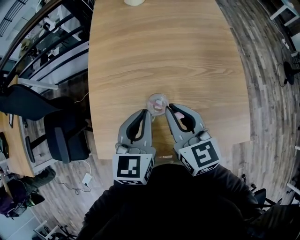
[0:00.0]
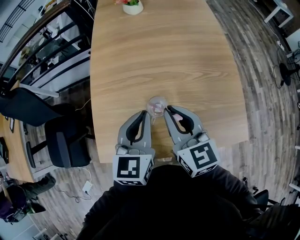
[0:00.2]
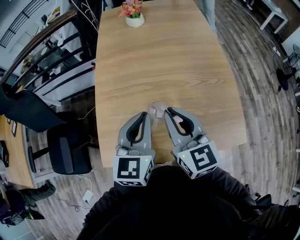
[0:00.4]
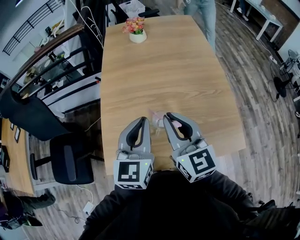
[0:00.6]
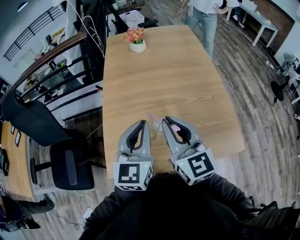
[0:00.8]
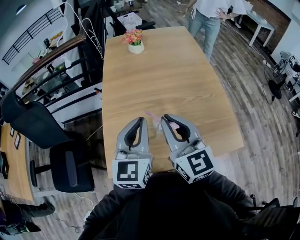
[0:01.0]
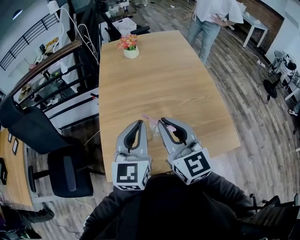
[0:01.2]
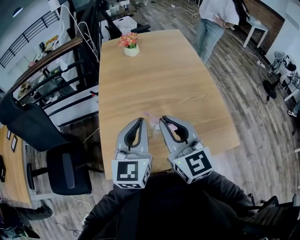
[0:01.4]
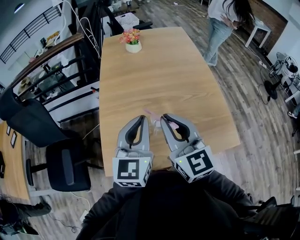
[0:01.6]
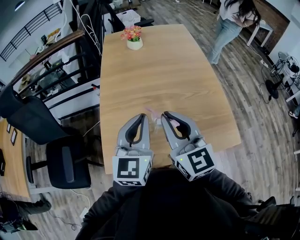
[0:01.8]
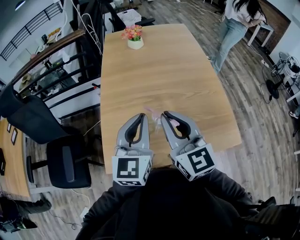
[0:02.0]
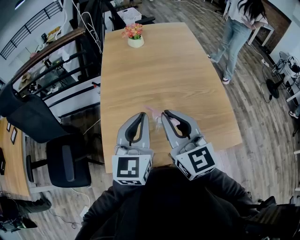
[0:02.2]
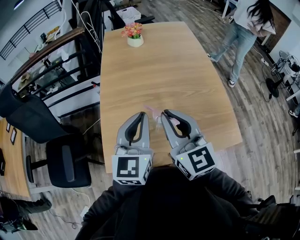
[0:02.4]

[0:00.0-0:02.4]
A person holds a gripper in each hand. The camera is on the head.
0.0 to 1.2 s: The right gripper moves upward and backward, some 15 cm, and turns by approximately 20 degrees, while the left gripper is displaced upward by about 10 cm, and changes its angle by some 20 degrees.
1.2 to 2.4 s: Neither gripper changes place.

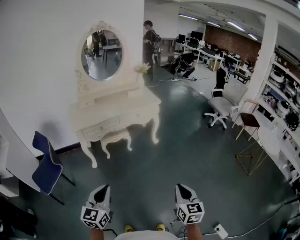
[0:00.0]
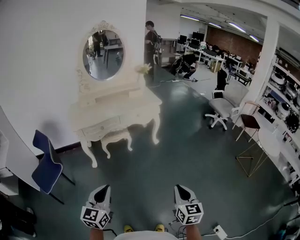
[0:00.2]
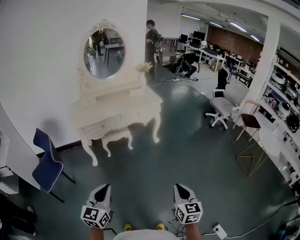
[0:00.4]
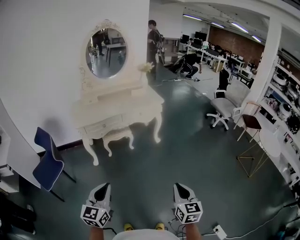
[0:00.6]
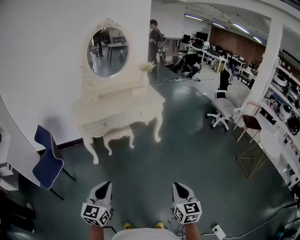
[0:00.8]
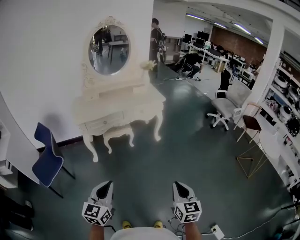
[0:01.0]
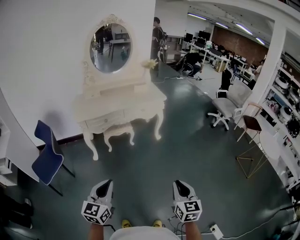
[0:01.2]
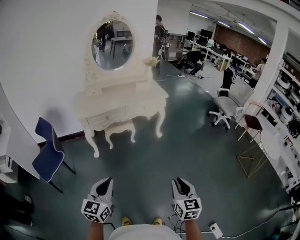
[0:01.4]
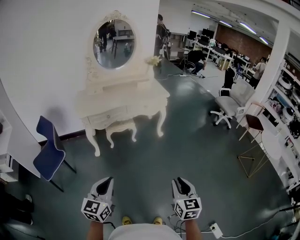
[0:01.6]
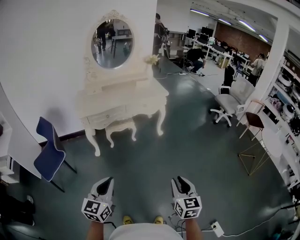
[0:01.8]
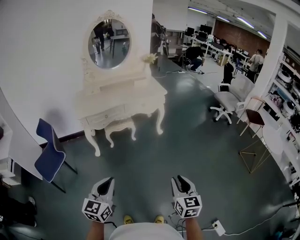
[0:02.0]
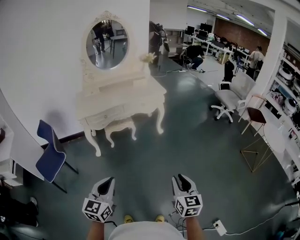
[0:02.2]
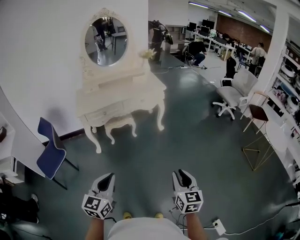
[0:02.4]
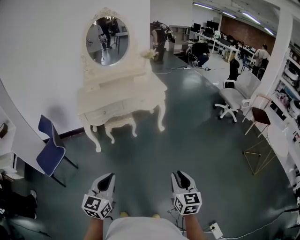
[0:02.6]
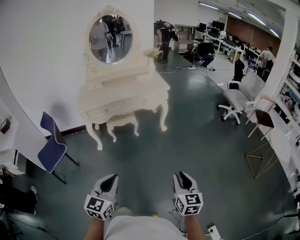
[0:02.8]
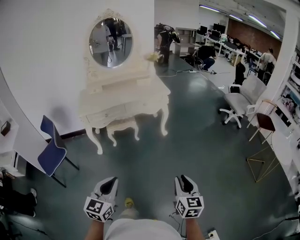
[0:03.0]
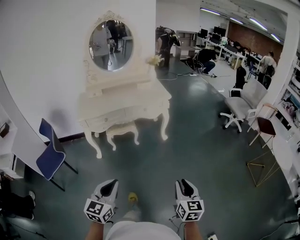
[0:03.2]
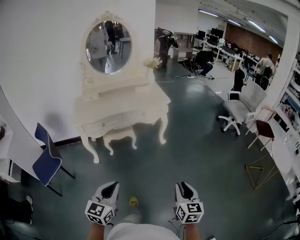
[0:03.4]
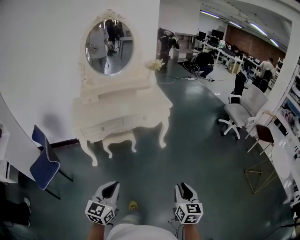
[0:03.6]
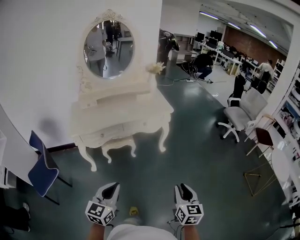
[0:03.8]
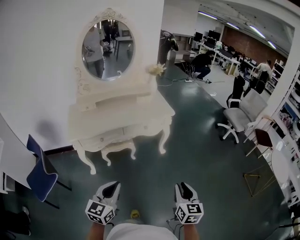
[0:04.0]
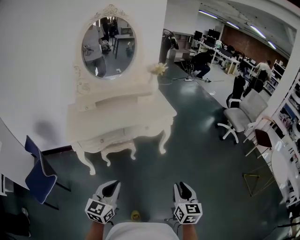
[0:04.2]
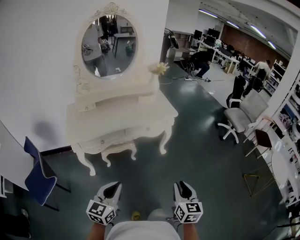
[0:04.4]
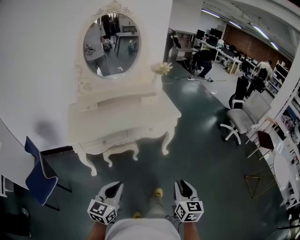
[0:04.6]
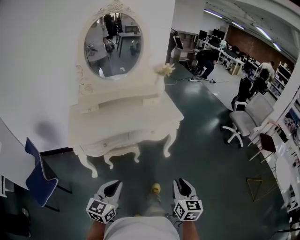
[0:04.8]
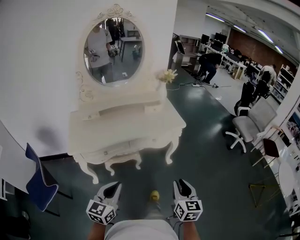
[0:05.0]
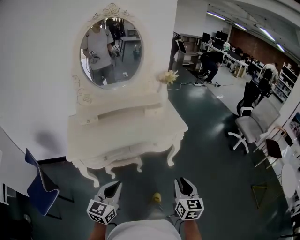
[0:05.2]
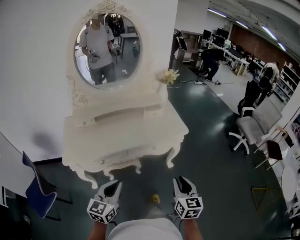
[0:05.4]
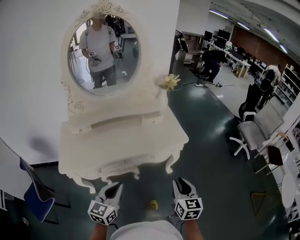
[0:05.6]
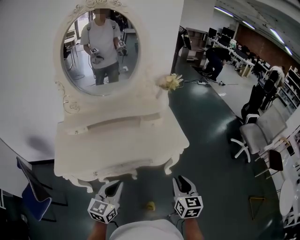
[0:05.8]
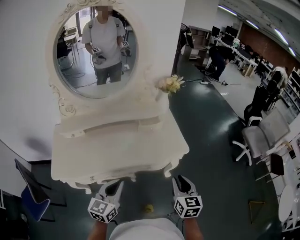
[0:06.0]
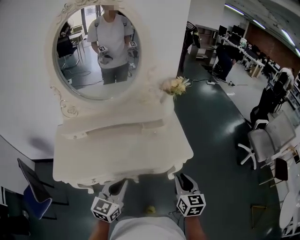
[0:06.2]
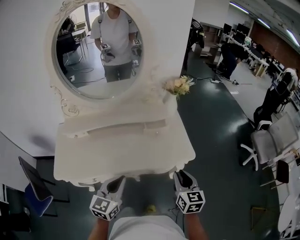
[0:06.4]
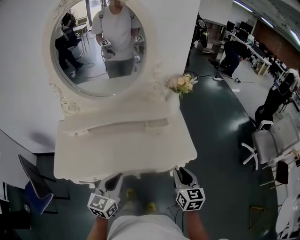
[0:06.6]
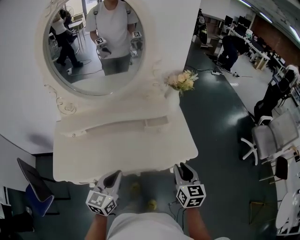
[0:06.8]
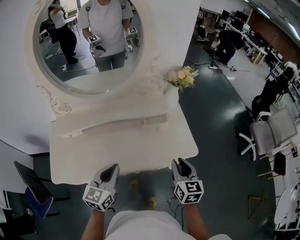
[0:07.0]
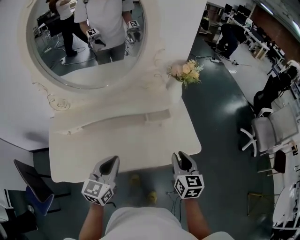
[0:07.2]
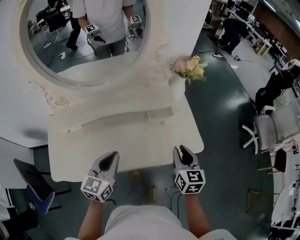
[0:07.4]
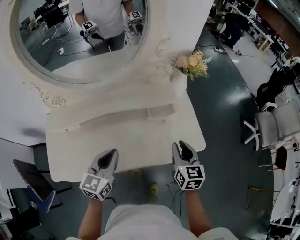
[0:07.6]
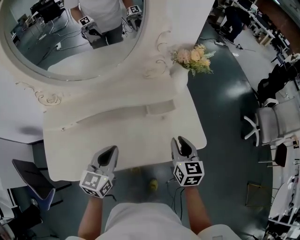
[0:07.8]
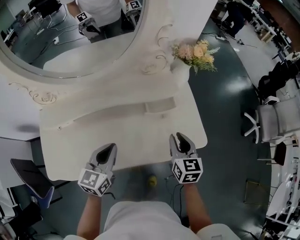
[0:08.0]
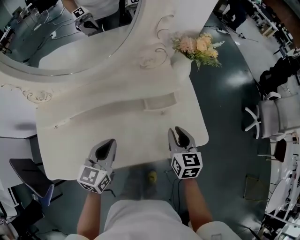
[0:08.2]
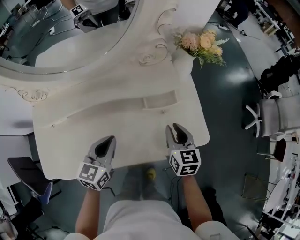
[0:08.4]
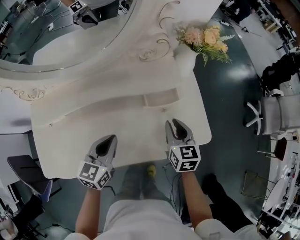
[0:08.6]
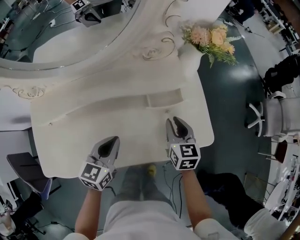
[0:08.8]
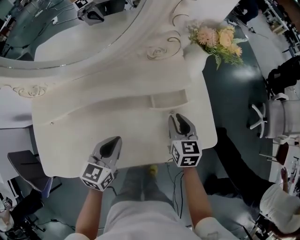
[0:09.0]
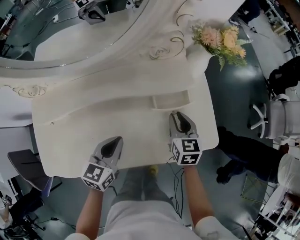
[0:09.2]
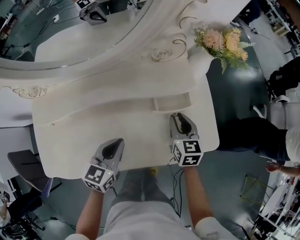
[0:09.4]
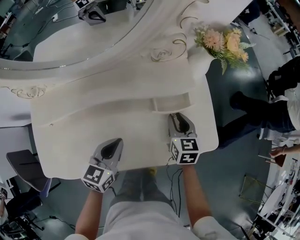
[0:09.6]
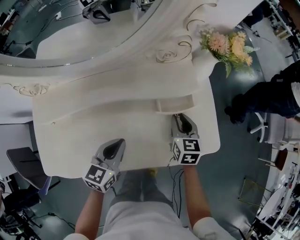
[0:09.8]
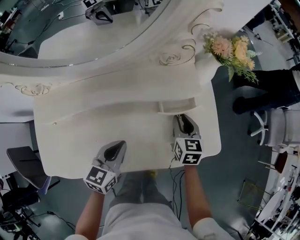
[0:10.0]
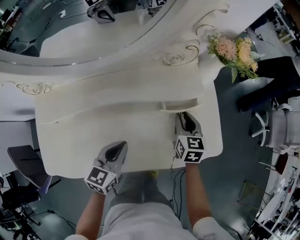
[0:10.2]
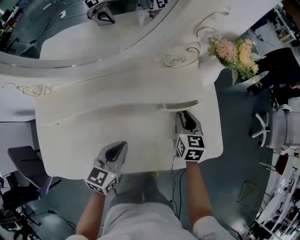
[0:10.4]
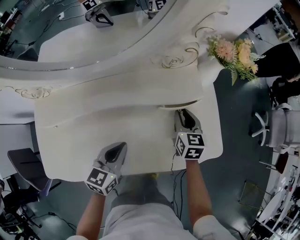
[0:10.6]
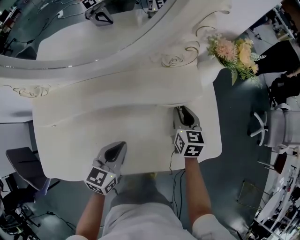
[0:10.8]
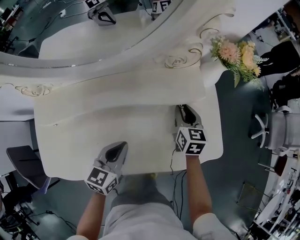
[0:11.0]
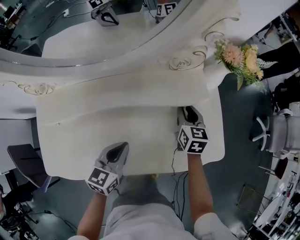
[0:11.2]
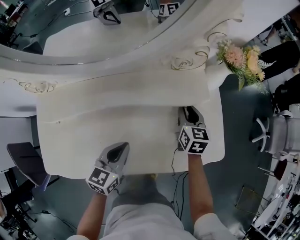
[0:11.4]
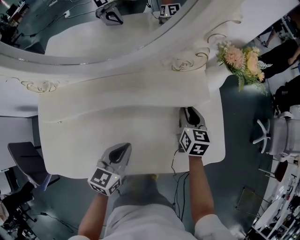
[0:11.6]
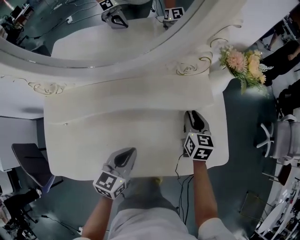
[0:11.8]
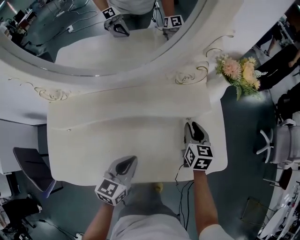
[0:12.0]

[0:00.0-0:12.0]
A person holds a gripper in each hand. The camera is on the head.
0.0 to 1.6 s: There are only small adjustments of the grippers.
1.6 to 3.0 s: The left gripper goes roughly 15 cm to the right. Meanwhile the right gripper moves to the right and forward, roughly 15 cm.
3.0 to 4.4 s: Both grippers move forward and to the left, approximately 35 cm.
4.4 to 6.0 s: Both grippers are carried forward, some 40 cm.
6.0 to 7.6 s: The two grippers go some 25 cm forward.
7.6 to 9.0 s: The left gripper shifts some 15 cm downward and forward; the right gripper moves forward and downward, some 15 cm.
9.0 to 10.4 s: The right gripper moves forward, approximately 5 cm.
10.4 to 12.0 s: The grippers move only a little.

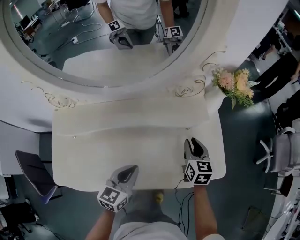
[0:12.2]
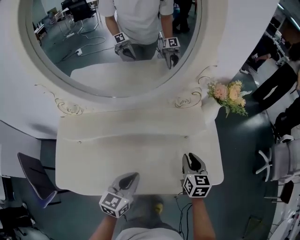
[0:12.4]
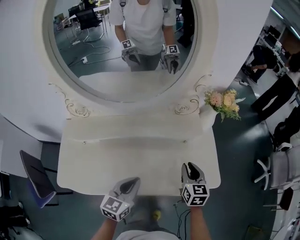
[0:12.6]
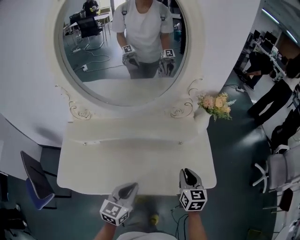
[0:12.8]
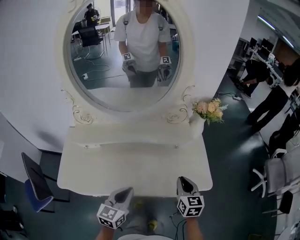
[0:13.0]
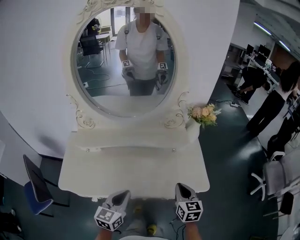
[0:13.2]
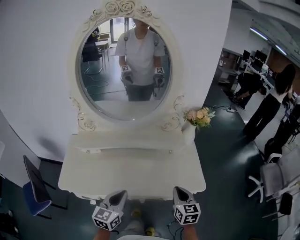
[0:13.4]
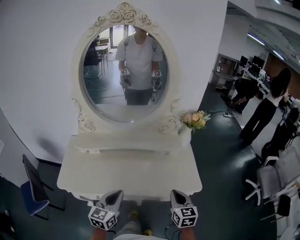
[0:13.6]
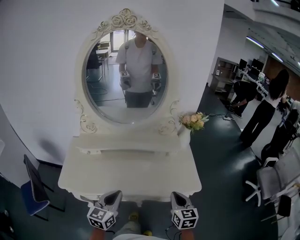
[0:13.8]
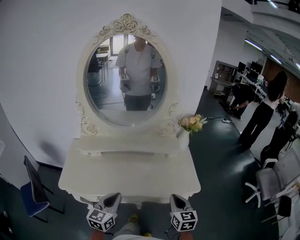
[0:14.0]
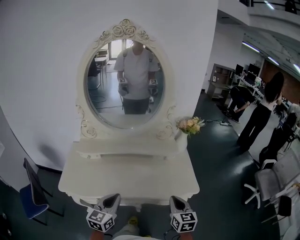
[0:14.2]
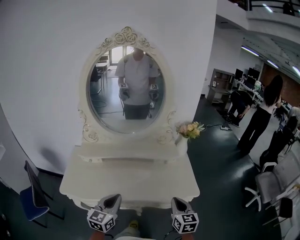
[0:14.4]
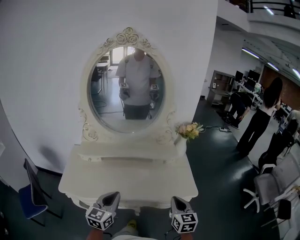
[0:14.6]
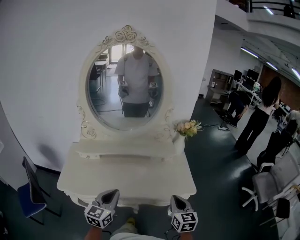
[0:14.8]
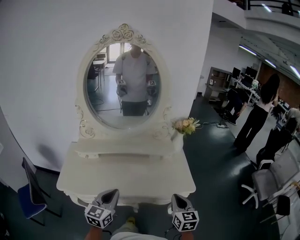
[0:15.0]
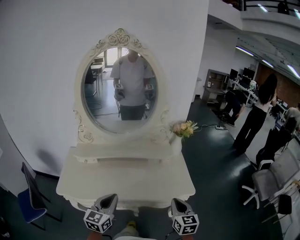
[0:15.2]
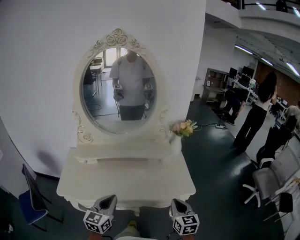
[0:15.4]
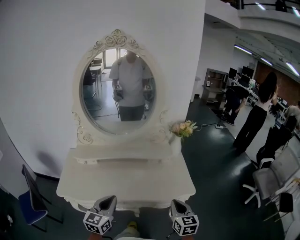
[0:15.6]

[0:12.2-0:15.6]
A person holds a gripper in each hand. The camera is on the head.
12.2 to 13.8 s: Both grippers move backward and upward, about 30 cm. The right gripper closes its fingers.
13.8 to 15.6 s: The right gripper travels backward by approximately 5 cm.

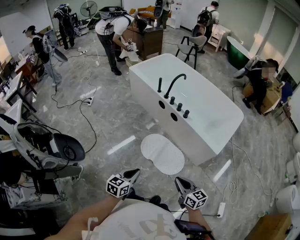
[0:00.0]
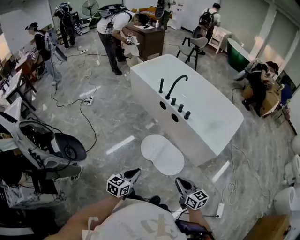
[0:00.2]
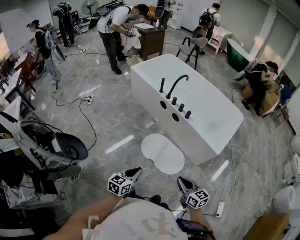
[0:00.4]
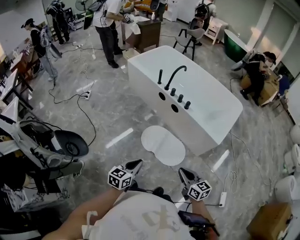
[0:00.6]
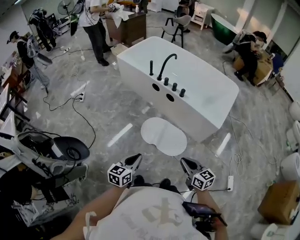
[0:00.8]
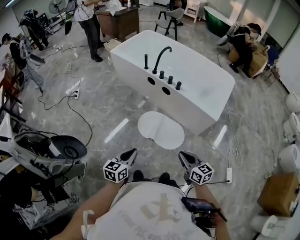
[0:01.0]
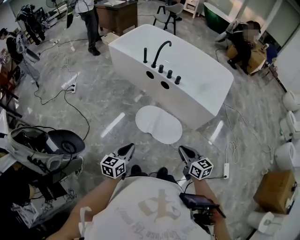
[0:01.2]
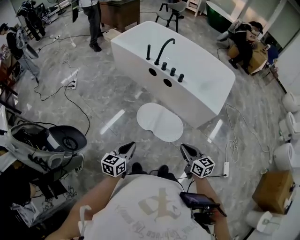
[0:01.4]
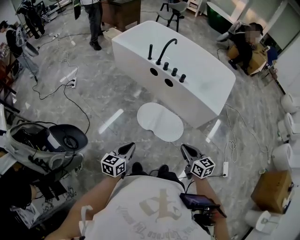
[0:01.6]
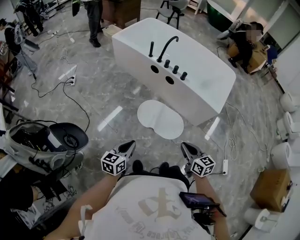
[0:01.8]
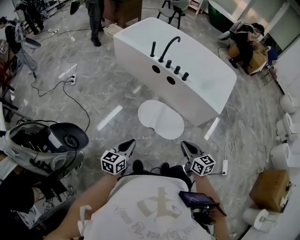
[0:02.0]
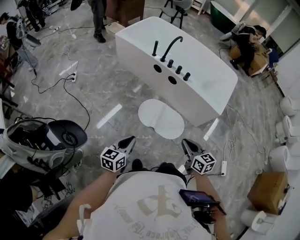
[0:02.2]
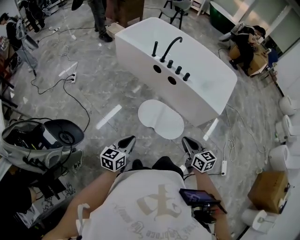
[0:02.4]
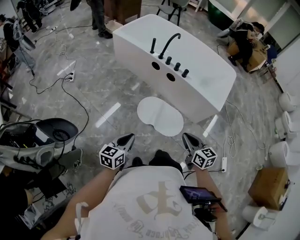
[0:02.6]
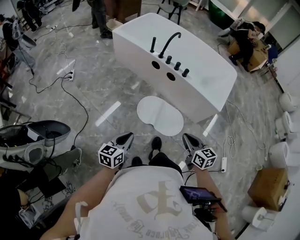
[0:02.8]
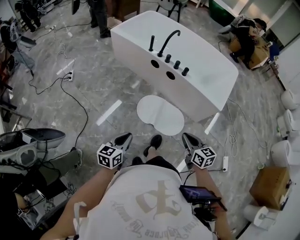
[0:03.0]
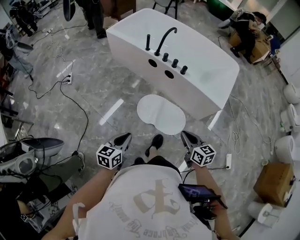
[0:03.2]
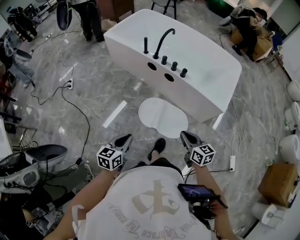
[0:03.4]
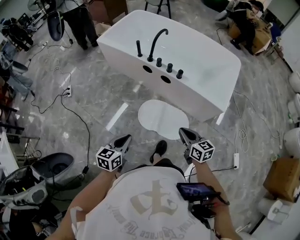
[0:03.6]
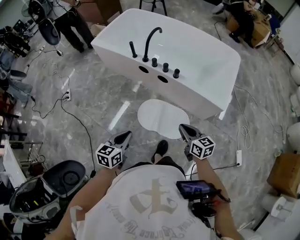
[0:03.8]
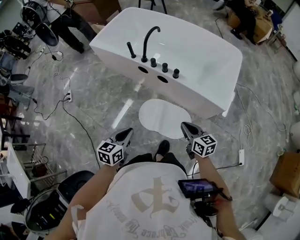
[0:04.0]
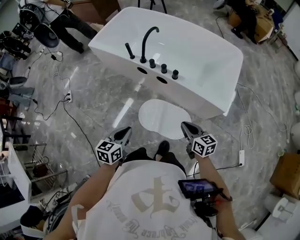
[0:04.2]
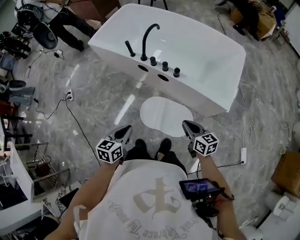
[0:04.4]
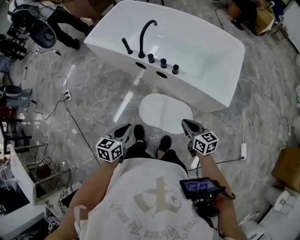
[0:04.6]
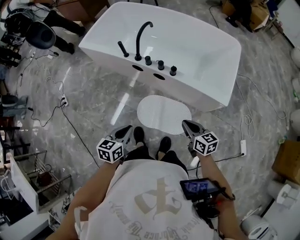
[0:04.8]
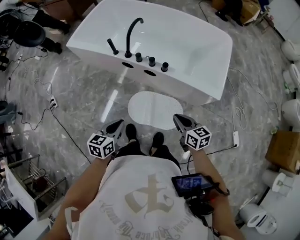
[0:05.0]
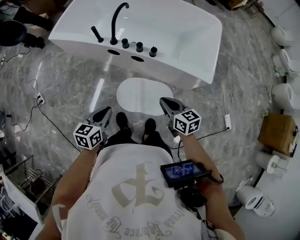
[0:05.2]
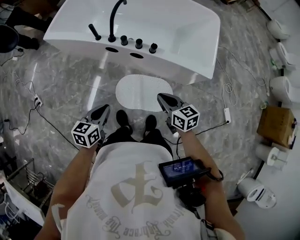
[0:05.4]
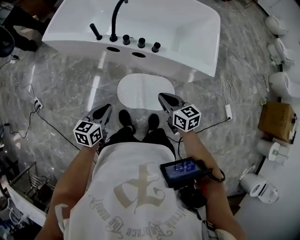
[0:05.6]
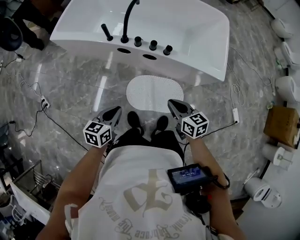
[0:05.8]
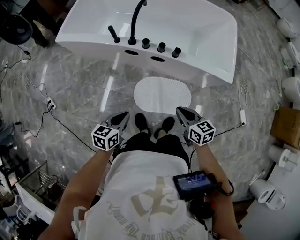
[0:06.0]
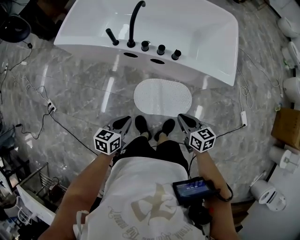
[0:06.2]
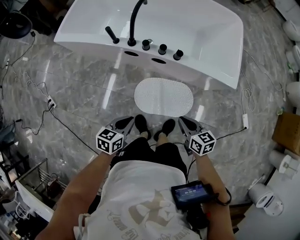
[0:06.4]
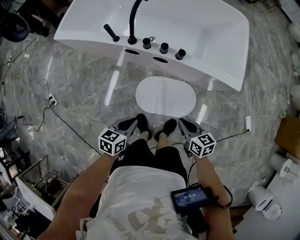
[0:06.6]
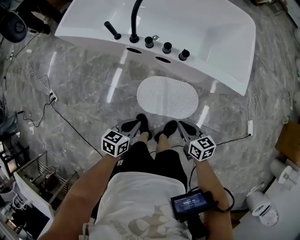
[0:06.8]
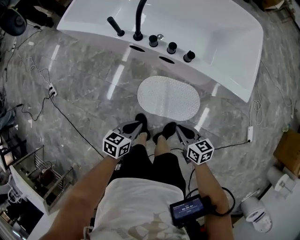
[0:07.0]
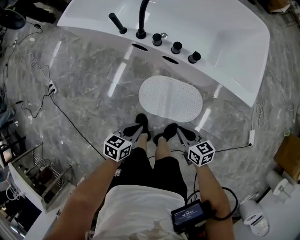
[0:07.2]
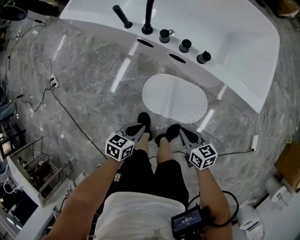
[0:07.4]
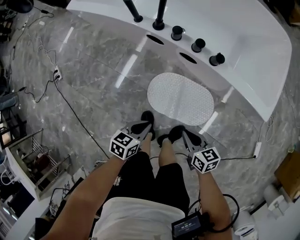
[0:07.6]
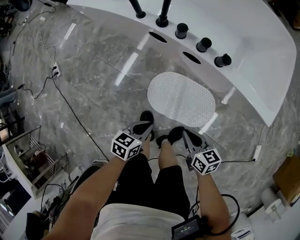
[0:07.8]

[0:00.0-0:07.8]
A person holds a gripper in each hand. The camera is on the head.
0.0 to 1.6 s: The two grippers go some 10 cm to the left.
1.6 to 3.2 s: The grippers both shift forward by about 10 cm.
3.2 to 4.6 s: The right gripper travels forward and to the right by about 20 cm. The left gripper shifts approximately 25 cm forward.
4.6 to 6.2 s: The right gripper goes some 10 cm to the left. The left gripper goes roughly 15 cm to the left, forward and downward, and changes its angle by approximately 20 degrees.
6.2 to 7.8 s: The two grippers go roughly 20 cm downward.
